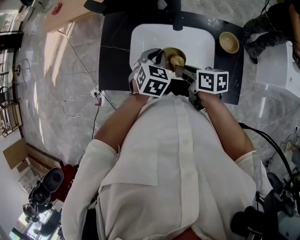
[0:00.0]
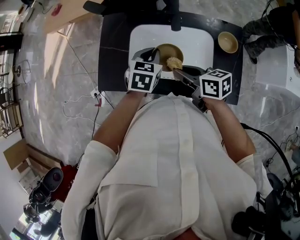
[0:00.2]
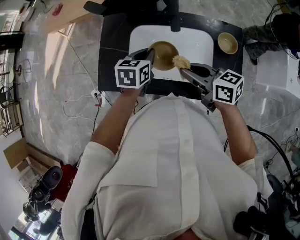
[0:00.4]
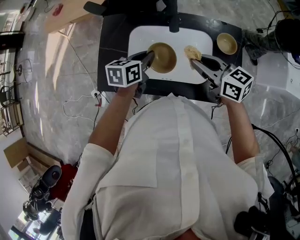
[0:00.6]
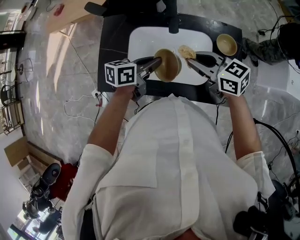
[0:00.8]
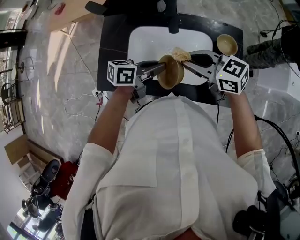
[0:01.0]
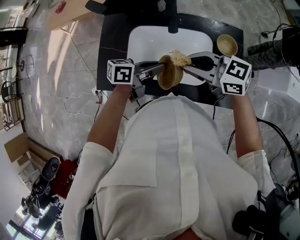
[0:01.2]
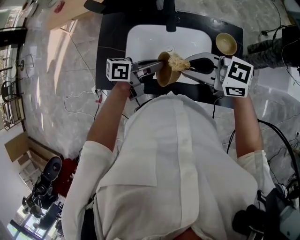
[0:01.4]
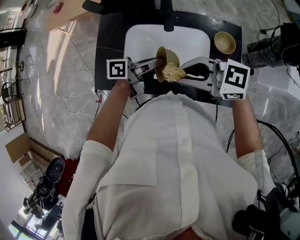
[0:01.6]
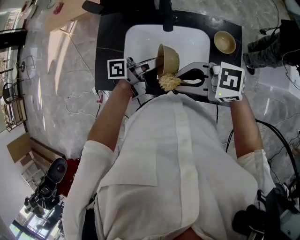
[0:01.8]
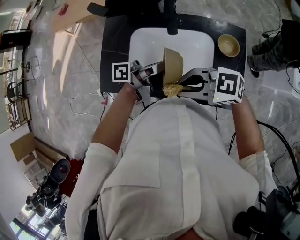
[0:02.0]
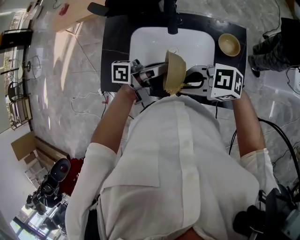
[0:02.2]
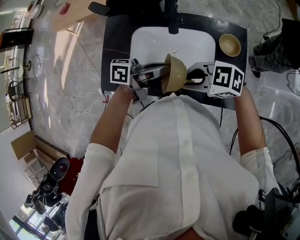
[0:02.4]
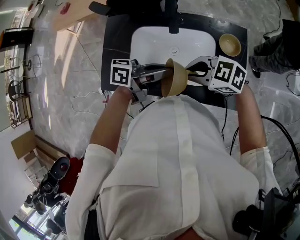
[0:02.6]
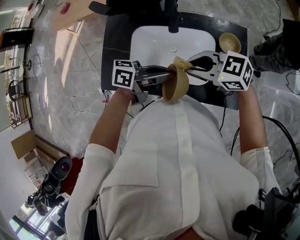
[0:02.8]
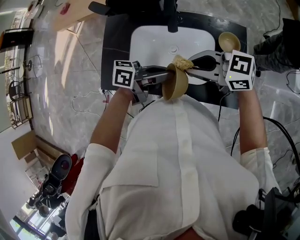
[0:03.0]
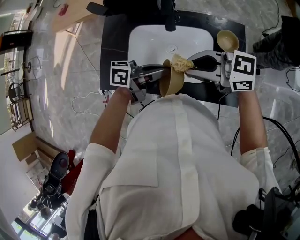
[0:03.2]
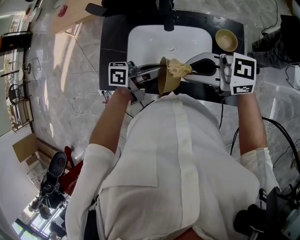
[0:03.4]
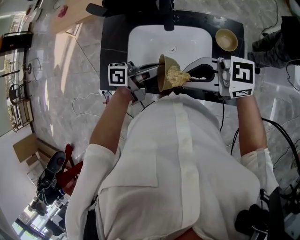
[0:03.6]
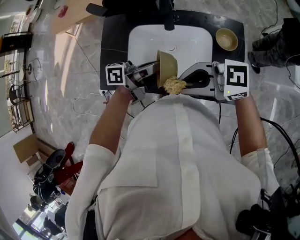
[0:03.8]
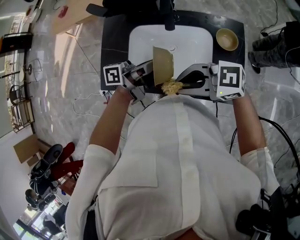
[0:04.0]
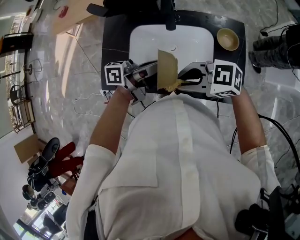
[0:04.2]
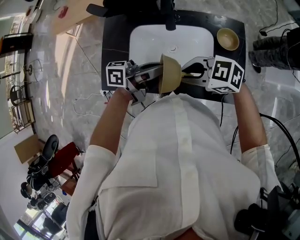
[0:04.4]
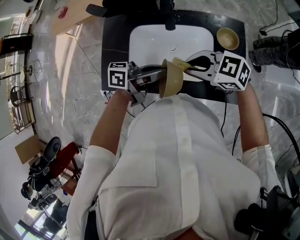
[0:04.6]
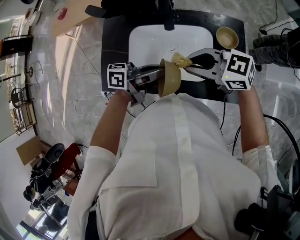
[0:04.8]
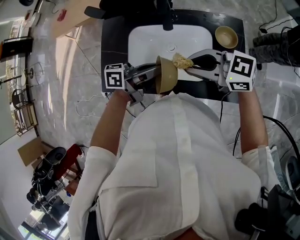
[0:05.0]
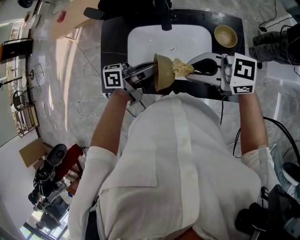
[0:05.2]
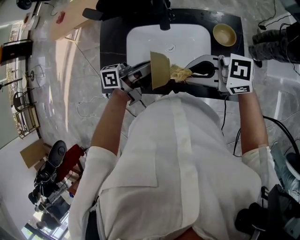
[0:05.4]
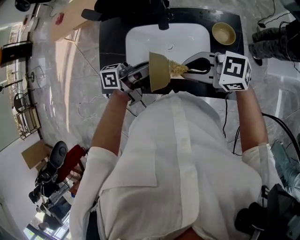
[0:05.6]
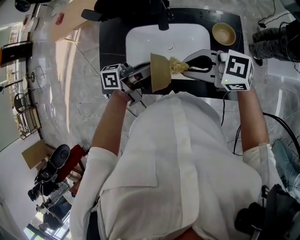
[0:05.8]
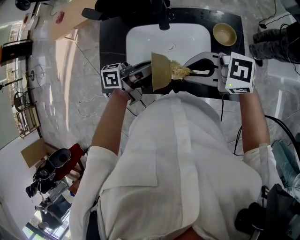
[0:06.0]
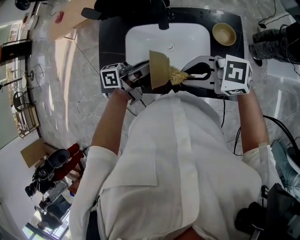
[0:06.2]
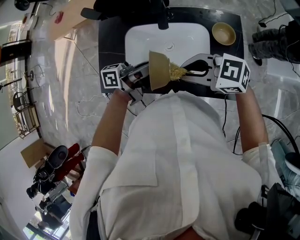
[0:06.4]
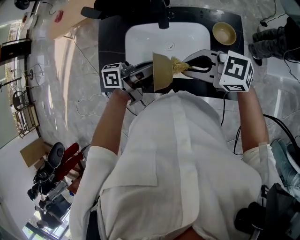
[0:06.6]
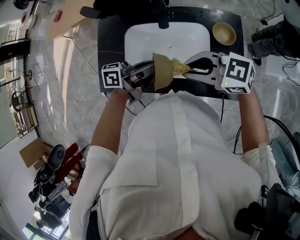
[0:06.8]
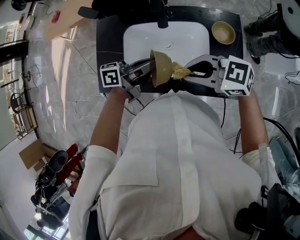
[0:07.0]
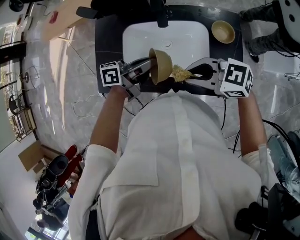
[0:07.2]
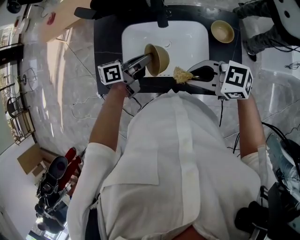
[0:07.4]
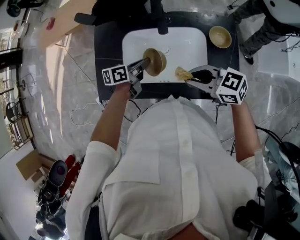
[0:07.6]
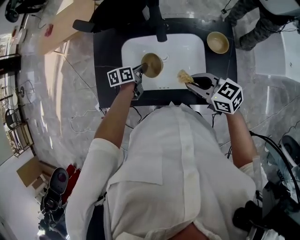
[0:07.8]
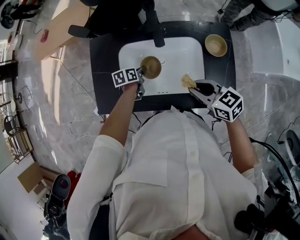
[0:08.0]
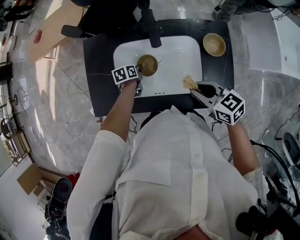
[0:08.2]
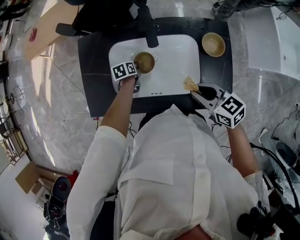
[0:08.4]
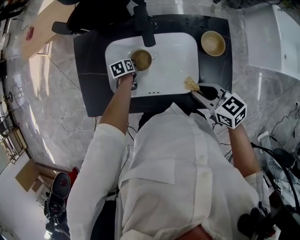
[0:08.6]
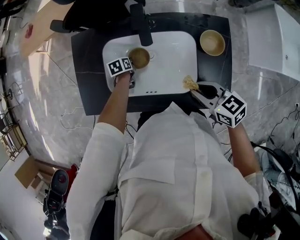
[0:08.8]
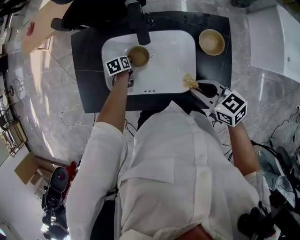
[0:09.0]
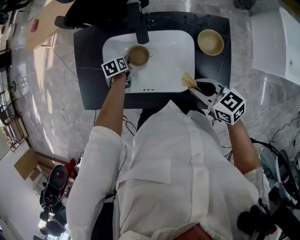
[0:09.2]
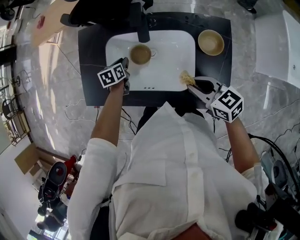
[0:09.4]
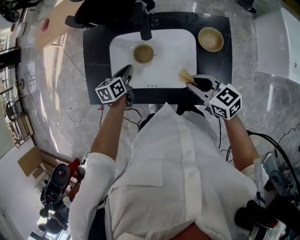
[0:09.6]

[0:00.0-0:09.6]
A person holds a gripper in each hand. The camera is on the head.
0:00.0 to 0:01.6: The left gripper ends up about 5 cm from where it was, and tilts its fingers approximately 40 degrees upward, while the right gripper is displaced upward by about 15 cm, and changes its angle by some 60 degrees.
0:01.6 to 0:03.2: The right gripper reaches some 10 cm downward, then returns.
0:04.8 to 0:06.4: There are only small adjustments of the grippers.
0:06.4 to 0:08.0: The left gripper travels downward by about 25 cm, and angles its fingers downward, by some 60 degrees, while the right gripper goes some 5 cm downward, and changes its angle by some 40 degrees.
0:08.0 to 0:09.6: The left gripper is displaced upward by approximately 10 cm. Meanwhile the right gripper moves about 5 cm.

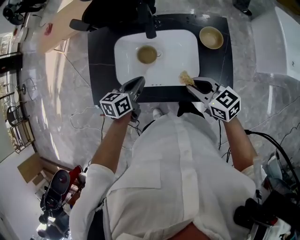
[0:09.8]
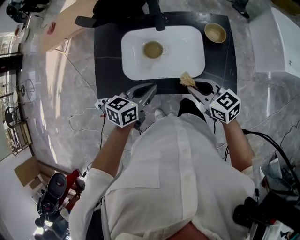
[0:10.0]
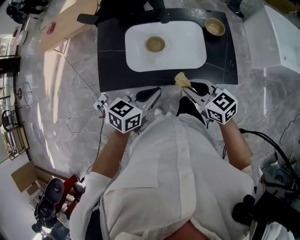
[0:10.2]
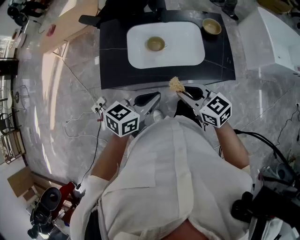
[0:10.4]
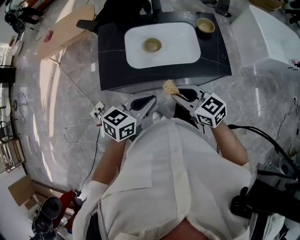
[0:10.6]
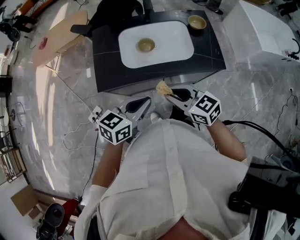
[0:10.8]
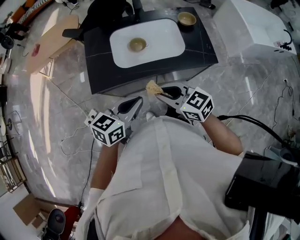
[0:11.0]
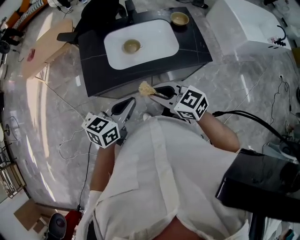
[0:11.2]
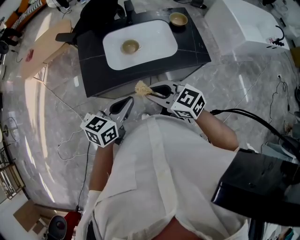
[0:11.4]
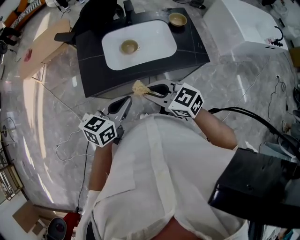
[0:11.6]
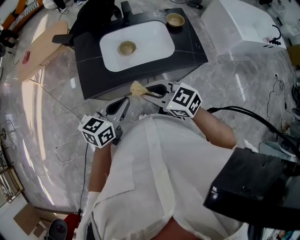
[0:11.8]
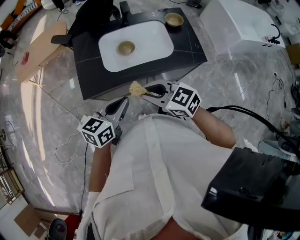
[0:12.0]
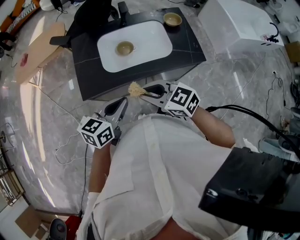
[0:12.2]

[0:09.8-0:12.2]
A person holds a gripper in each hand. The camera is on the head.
0:09.8 to 0:11.0: The right gripper shifts some 30 cm backward and to the left. The left gripper moves backward and upward, approximately 25 cm, and changes its angle by about 30 degrees.
0:11.0 to 0:12.2: The grippers move only a little.

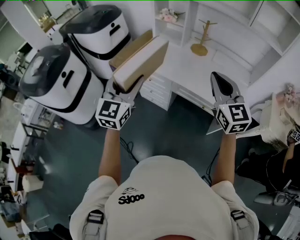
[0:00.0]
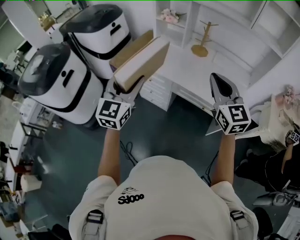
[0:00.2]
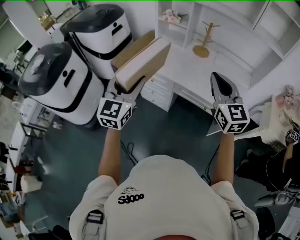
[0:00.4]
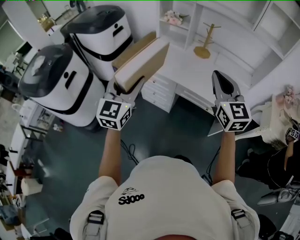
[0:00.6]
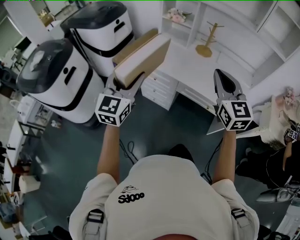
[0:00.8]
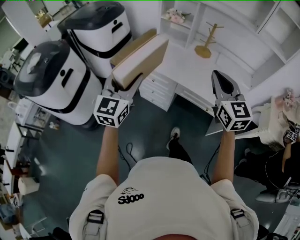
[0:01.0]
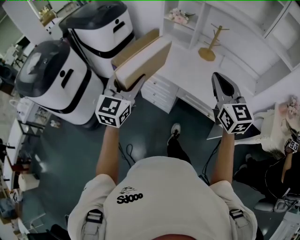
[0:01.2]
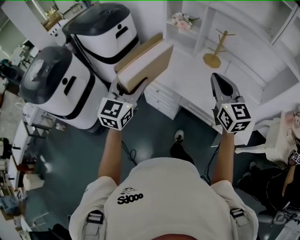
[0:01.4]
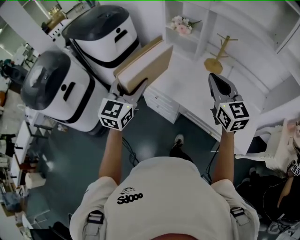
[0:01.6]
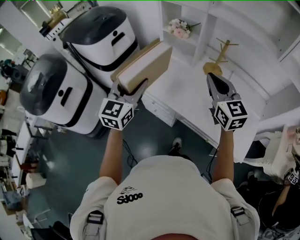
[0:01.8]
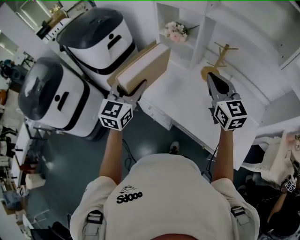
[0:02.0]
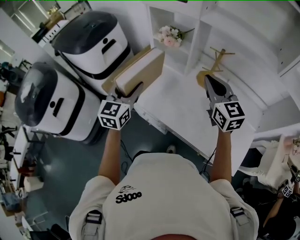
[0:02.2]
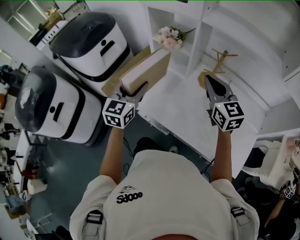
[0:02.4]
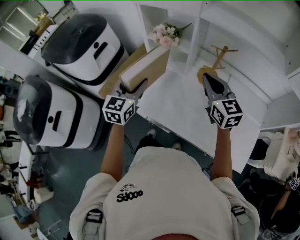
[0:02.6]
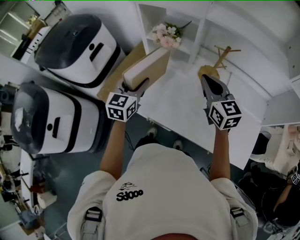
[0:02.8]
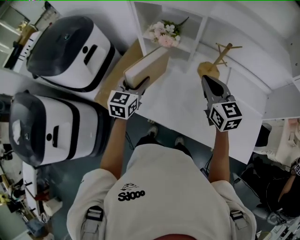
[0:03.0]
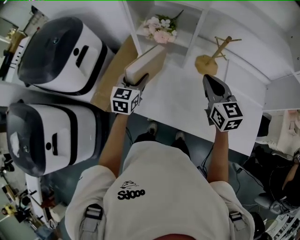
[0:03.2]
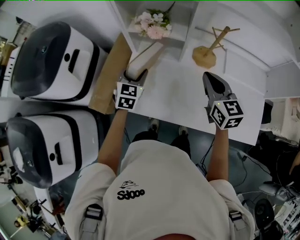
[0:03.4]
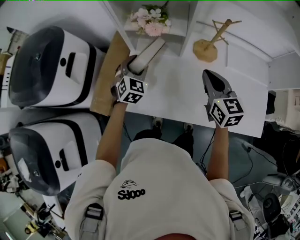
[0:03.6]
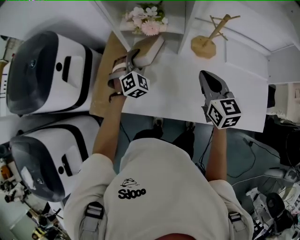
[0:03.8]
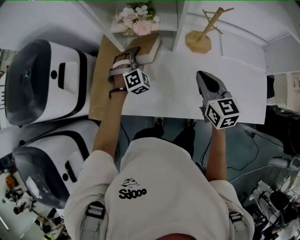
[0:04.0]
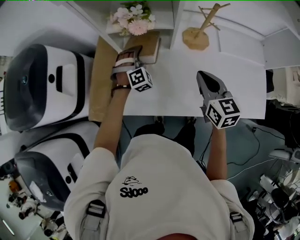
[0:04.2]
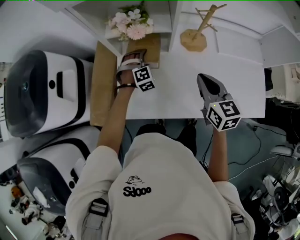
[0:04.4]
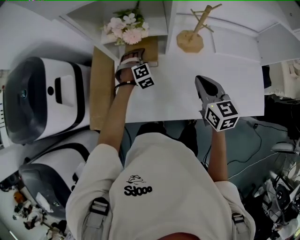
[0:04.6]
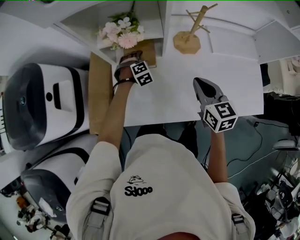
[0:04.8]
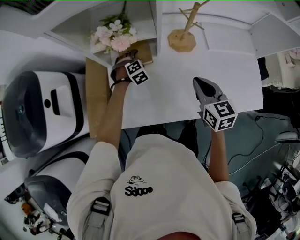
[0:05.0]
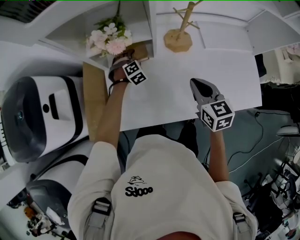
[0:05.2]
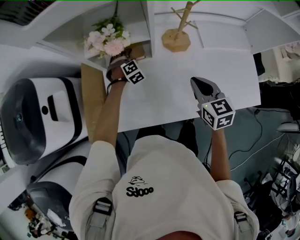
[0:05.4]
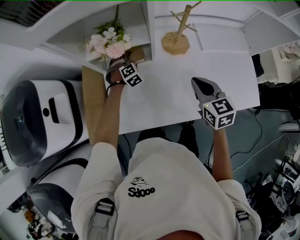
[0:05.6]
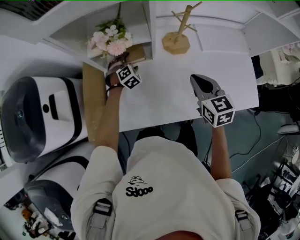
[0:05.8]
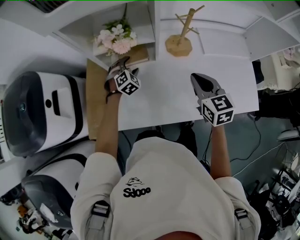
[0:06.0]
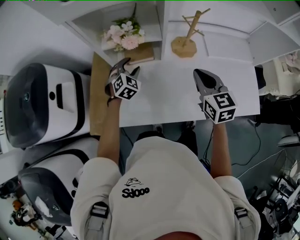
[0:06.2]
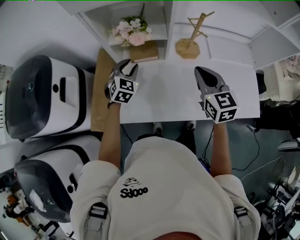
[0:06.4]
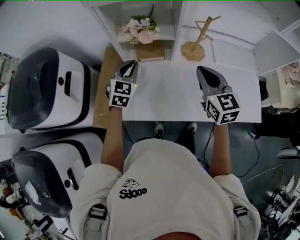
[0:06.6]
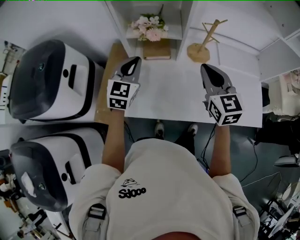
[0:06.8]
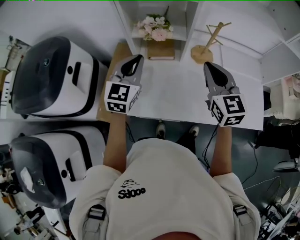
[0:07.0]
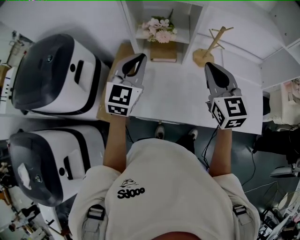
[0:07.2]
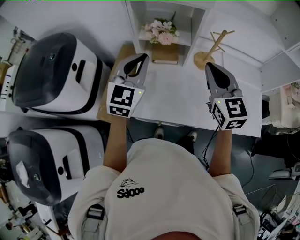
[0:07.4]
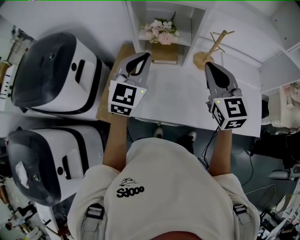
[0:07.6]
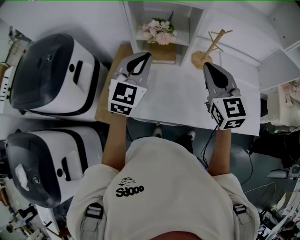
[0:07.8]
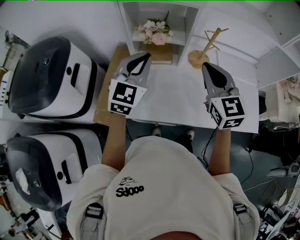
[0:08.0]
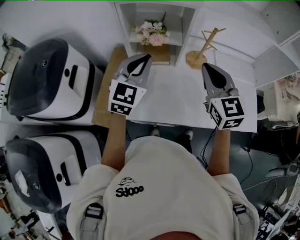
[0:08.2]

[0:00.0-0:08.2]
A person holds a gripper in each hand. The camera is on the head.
0:00.0 to 0:01.6: Both grippers move forward, approximately 20 cm.
0:01.6 to 0:03.2: Both grippers move forward and downward, roughly 30 cm. The right gripper turns by approximately 20 degrees. Meanwhile the left gripper changes its angle by approximately 20 degrees.
0:03.2 to 0:05.0: The right gripper travels downward by roughly 10 cm, and swivels some 30 degrees. The left gripper heads downward, forward and to the right, covering approximately 30 cm, twists some 70 degrees clockwise, seen from behind, and opens.
0:05.0 to 0:06.6: The left gripper heads upward, backward and to the left, covering some 25 cm, points its fingers some 30 degrees further upward, and closes. The right gripper shifts some 10 cm upward.
0:06.6 to 0:08.2: The right gripper travels upward by about 10 cm, while the left gripper shifts roughly 15 cm upward and backward.

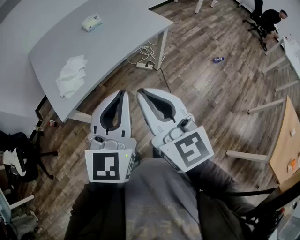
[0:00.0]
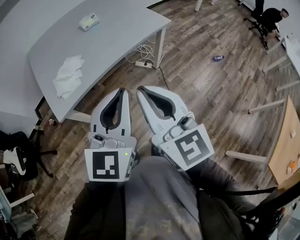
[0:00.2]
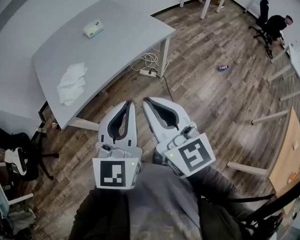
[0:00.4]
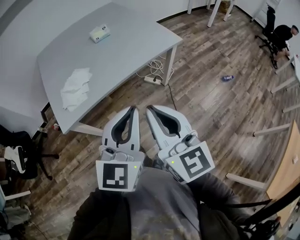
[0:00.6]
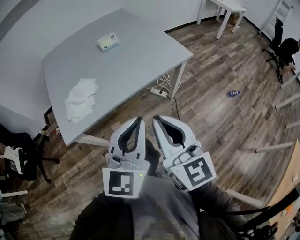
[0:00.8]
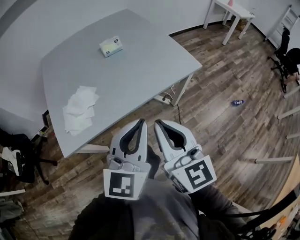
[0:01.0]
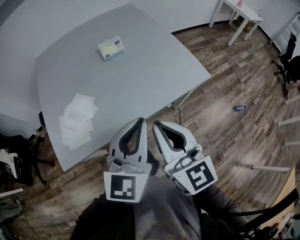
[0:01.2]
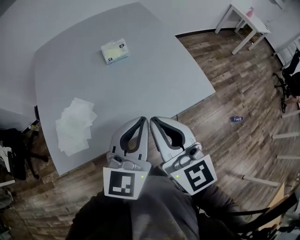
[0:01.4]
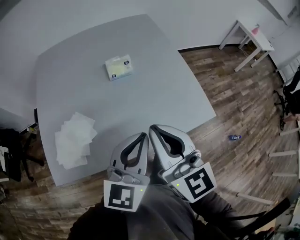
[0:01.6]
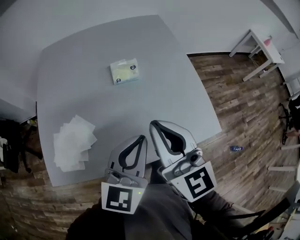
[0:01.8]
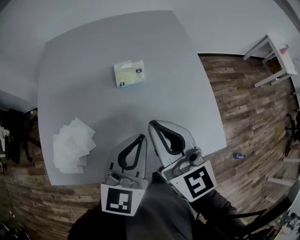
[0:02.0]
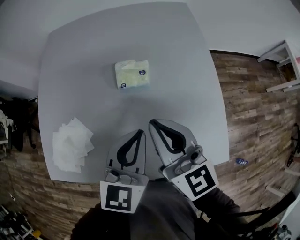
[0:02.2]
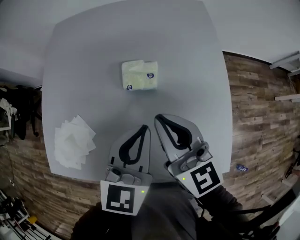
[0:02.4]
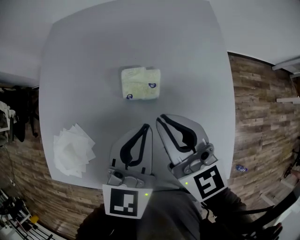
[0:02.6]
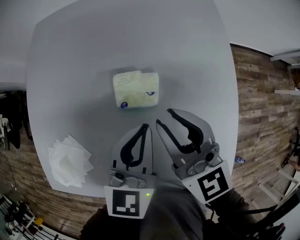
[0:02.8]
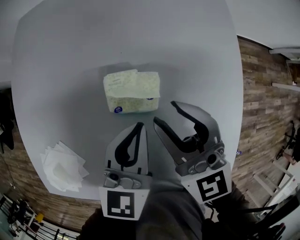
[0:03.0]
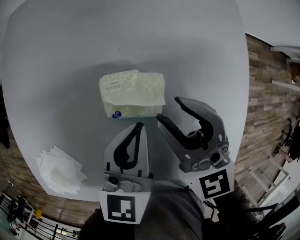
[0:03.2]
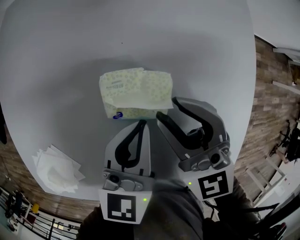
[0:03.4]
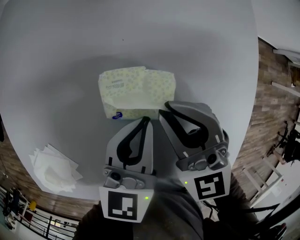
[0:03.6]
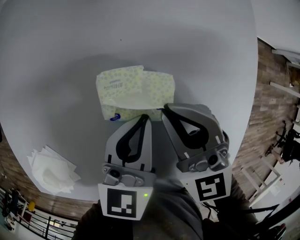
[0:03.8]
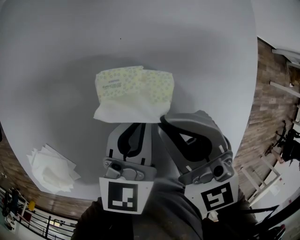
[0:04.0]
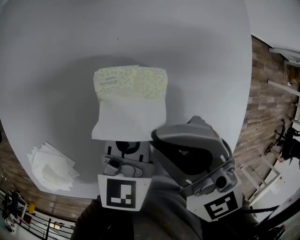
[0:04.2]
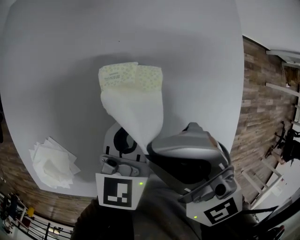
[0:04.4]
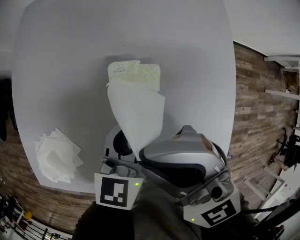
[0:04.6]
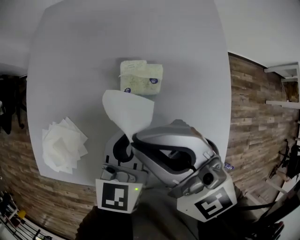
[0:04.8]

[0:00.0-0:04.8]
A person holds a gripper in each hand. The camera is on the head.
0:00.0 to 0:01.6: The pair of grippers is taken forward, some 40 cm. The right gripper rotates roughly 20 degrees.
0:01.6 to 0:03.2: Both grippers move forward and downward, roughly 40 cm. The right gripper turns by roughly 30 degrees, and opens its fingers, while the left gripper changes its angle by approximately 30 degrees.
0:03.2 to 0:04.8: The left gripper goes about 10 cm upward and backward. Meanwhile the right gripper moves upward, backward and to the left, about 25 cm, rotates some 20 degrees, and closes its fingers.
